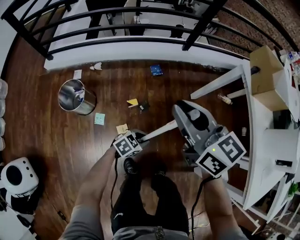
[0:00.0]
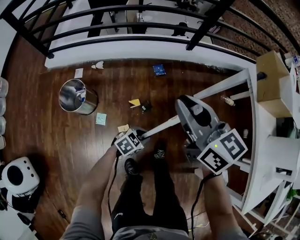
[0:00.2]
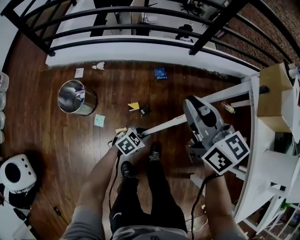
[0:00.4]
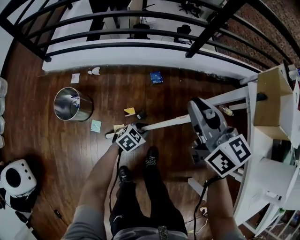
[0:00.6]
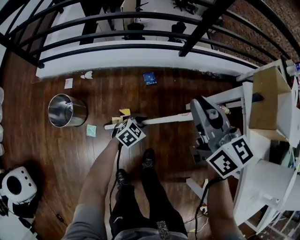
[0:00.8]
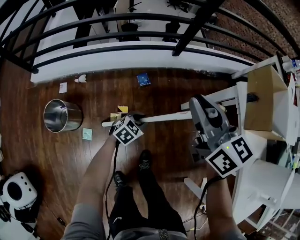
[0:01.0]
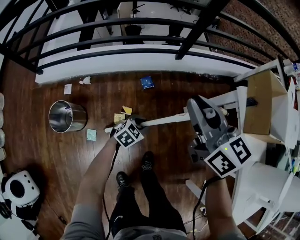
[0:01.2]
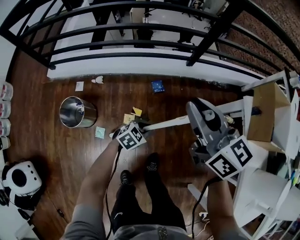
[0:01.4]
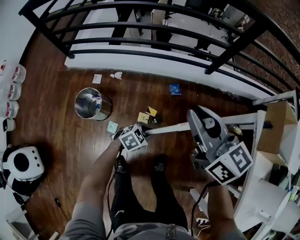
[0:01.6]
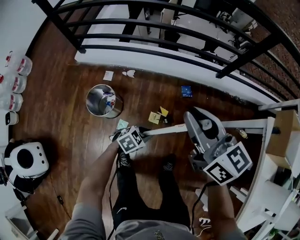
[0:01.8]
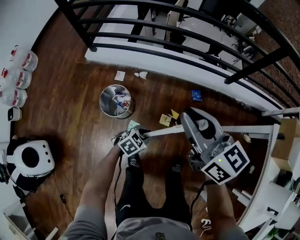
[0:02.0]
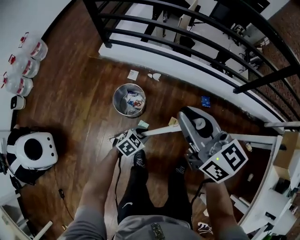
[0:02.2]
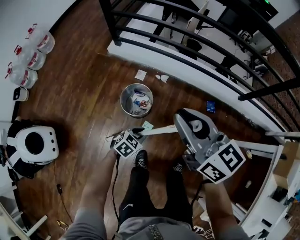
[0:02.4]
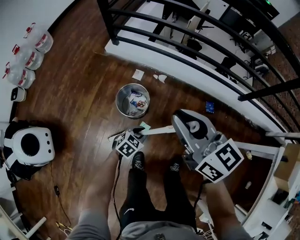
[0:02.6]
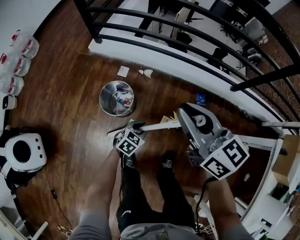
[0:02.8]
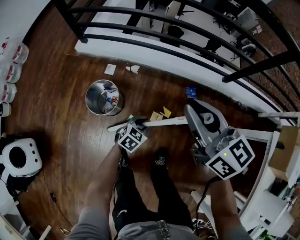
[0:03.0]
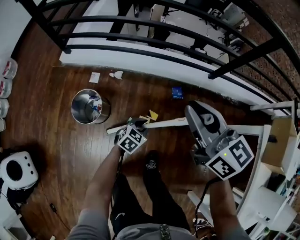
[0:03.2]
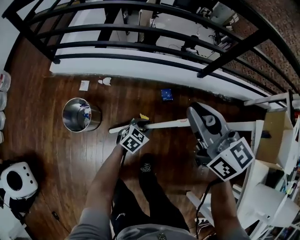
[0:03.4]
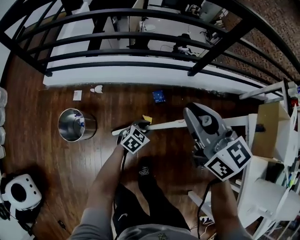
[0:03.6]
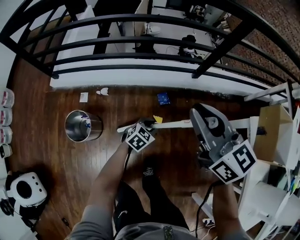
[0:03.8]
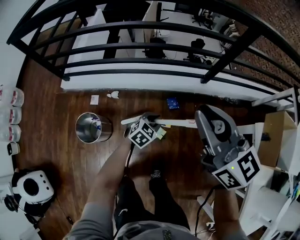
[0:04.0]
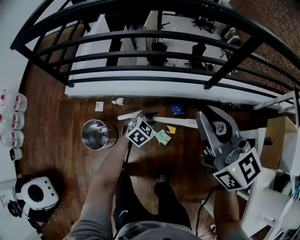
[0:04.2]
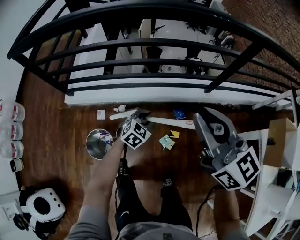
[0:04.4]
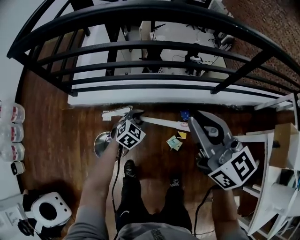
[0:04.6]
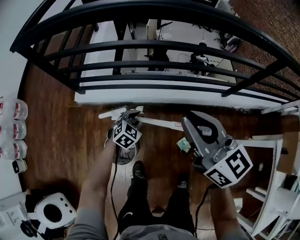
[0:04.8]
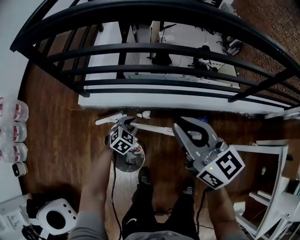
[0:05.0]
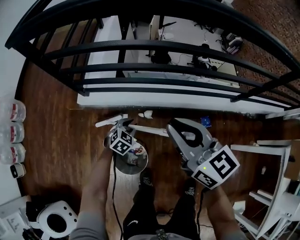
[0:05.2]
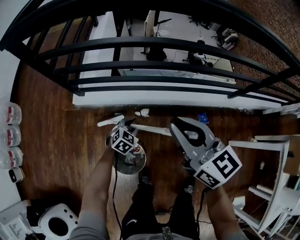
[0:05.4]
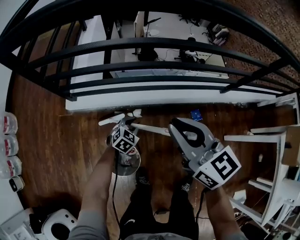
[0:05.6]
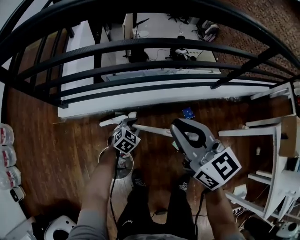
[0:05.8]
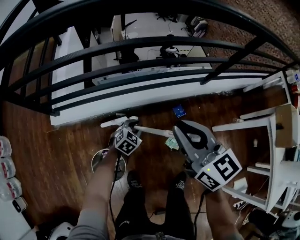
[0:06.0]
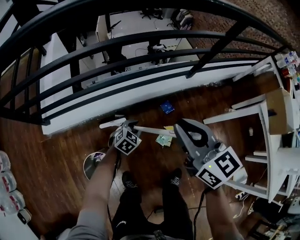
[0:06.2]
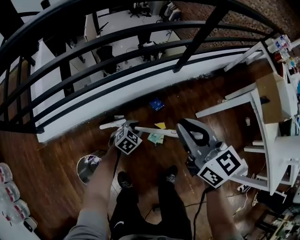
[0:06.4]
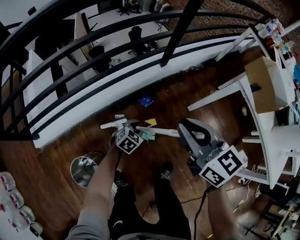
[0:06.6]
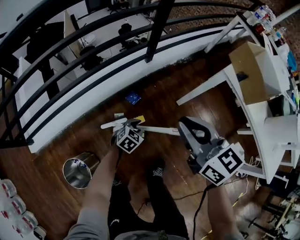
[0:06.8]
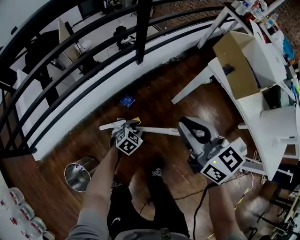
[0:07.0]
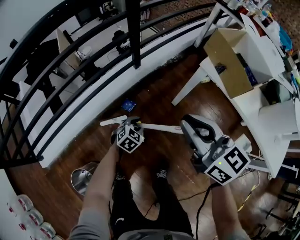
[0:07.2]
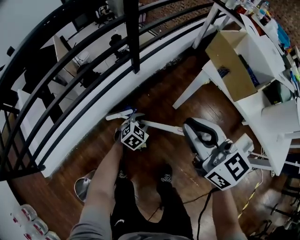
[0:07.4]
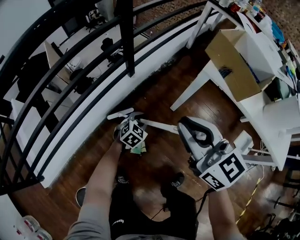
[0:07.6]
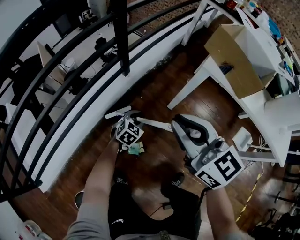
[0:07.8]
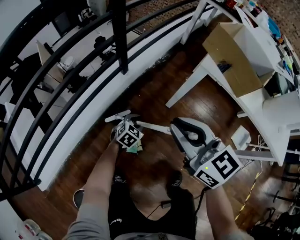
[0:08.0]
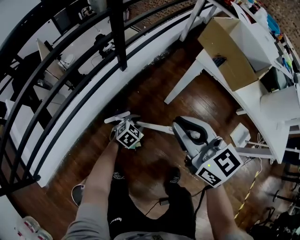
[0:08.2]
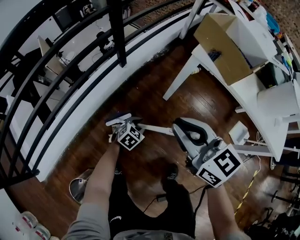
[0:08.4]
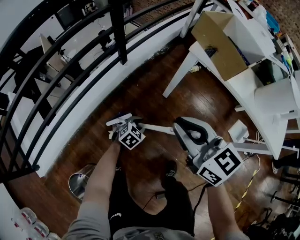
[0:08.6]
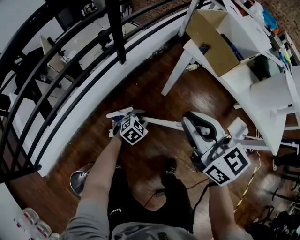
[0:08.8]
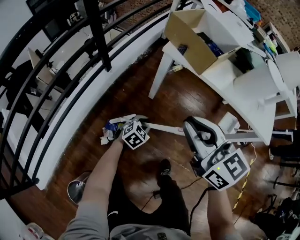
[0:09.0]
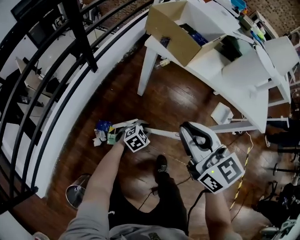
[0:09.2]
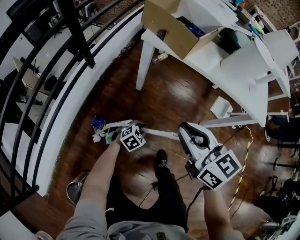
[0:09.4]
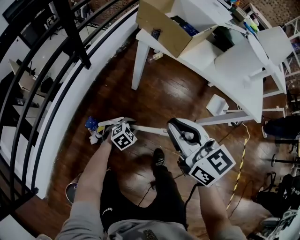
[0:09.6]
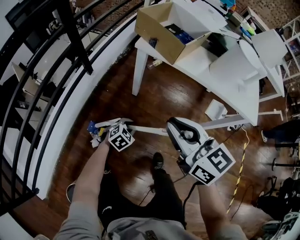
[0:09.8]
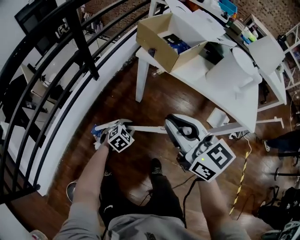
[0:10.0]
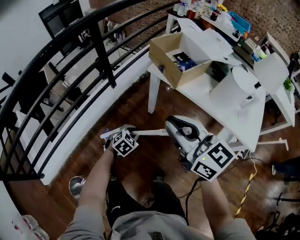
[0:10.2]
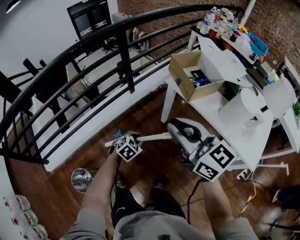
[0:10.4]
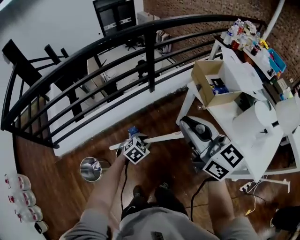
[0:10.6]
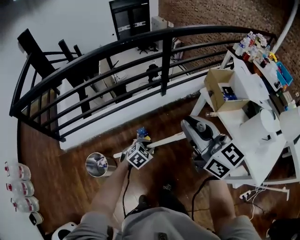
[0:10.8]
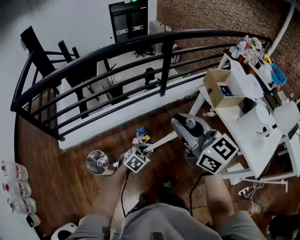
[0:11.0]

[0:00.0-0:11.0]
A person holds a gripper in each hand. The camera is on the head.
0.0 to 1.6 s: The left gripper travels forward and to the left by about 15 cm. Meanwhile the right gripper heads forward, covering roughly 10 cm.
1.6 to 3.2 s: The left gripper turns by approximately 20 degrees.
3.2 to 4.8 s: The right gripper goes roughly 20 cm to the left, forward and upward, while the left gripper goes approximately 35 cm to the left, forward and upward, and swivels approximately 20 degrees.
4.8 to 6.2 s: The right gripper changes place by some 15 cm, and turns by roughly 20 degrees, while the left gripper shifts by approximately 20 cm, and changes its angle by about 20 degrees.
6.2 to 7.8 s: The right gripper goes some 35 cm to the right, and changes its angle by approximately 30 degrees; the left gripper heads to the right and forward, covering approximately 40 cm, and rotates roughly 30 degrees.
7.8 to 9.4 s: The right gripper changes place by some 25 cm, and changes its angle by about 20 degrees. The left gripper changes place by about 30 cm, and swivels approximately 30 degrees.
9.4 to 11.0 s: Both grippers travel together upward, about 30 cm. The right gripper rotates roughly 50 degrees. Meanwhile the left gripper rotates some 50 degrees.

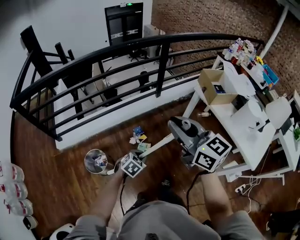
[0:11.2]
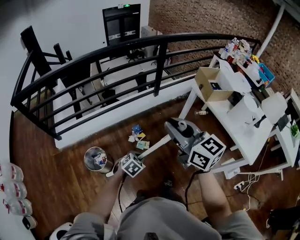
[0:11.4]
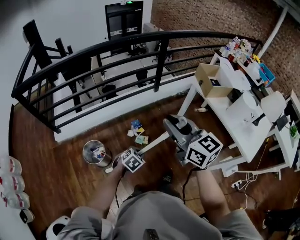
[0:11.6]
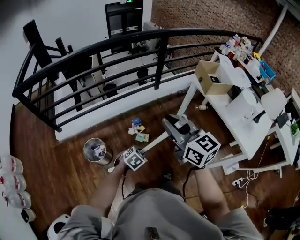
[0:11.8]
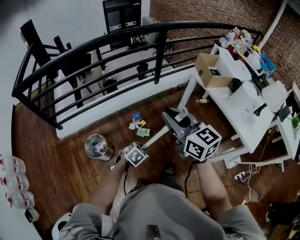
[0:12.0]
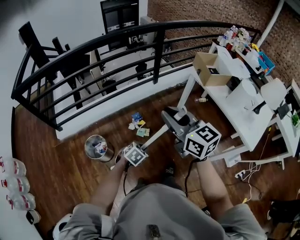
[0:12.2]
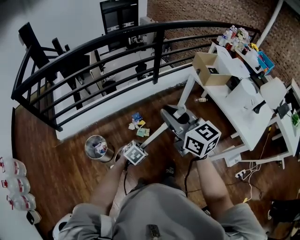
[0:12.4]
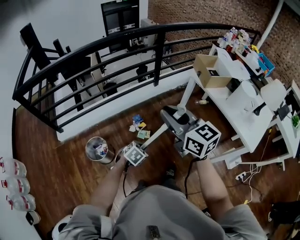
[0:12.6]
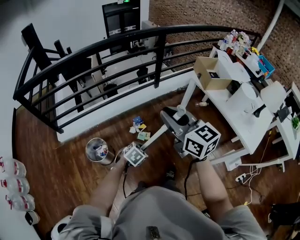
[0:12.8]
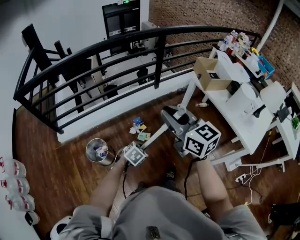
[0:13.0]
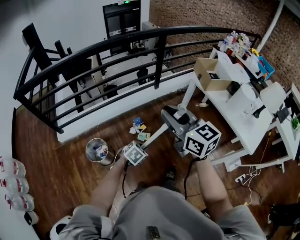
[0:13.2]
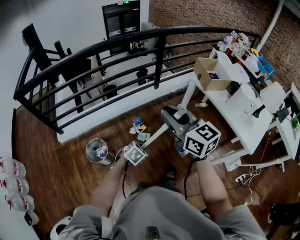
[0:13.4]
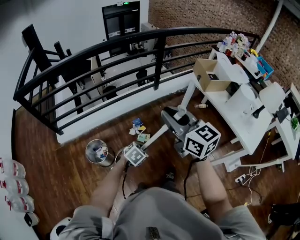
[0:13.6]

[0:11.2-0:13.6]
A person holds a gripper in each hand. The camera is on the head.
11.2 to 12.4 s: Both grippers move backward, about 5 cm.
12.4 to 13.6 s: The grippers make only small movements.

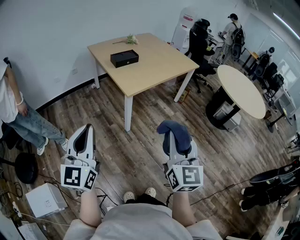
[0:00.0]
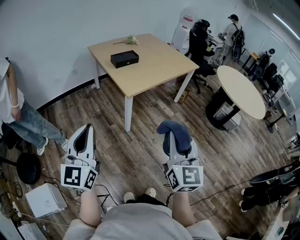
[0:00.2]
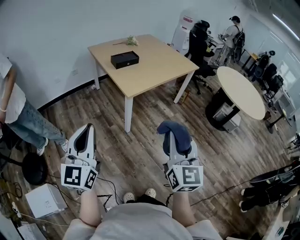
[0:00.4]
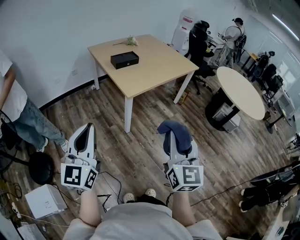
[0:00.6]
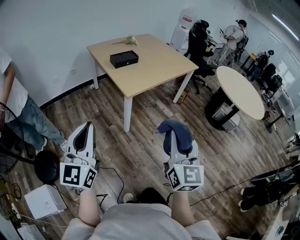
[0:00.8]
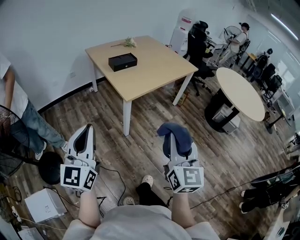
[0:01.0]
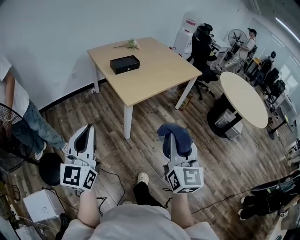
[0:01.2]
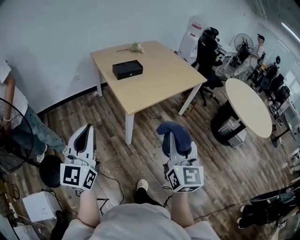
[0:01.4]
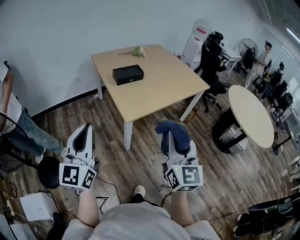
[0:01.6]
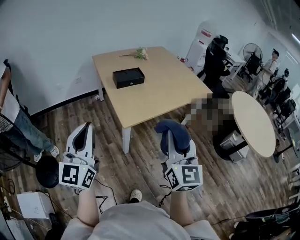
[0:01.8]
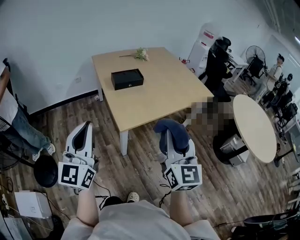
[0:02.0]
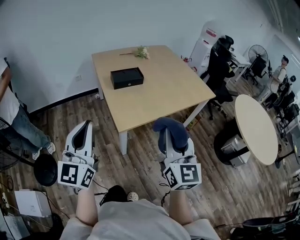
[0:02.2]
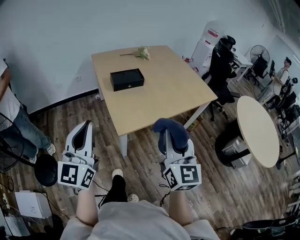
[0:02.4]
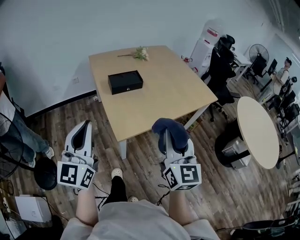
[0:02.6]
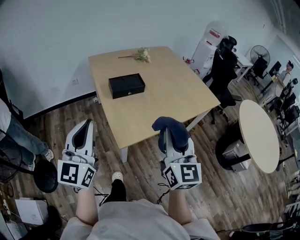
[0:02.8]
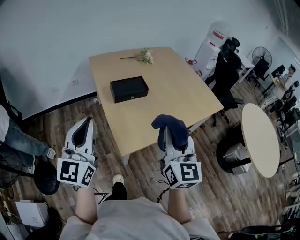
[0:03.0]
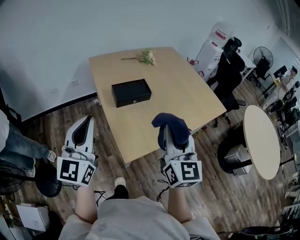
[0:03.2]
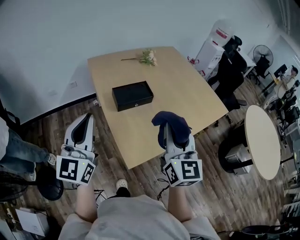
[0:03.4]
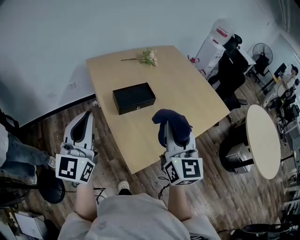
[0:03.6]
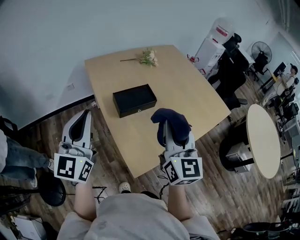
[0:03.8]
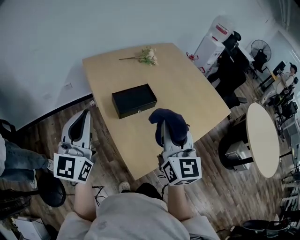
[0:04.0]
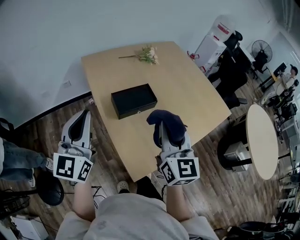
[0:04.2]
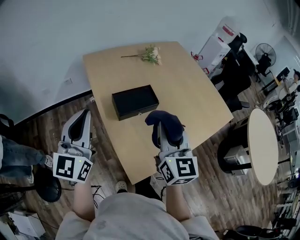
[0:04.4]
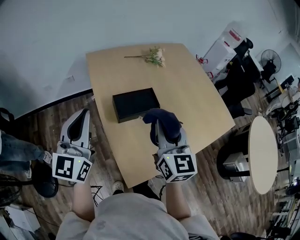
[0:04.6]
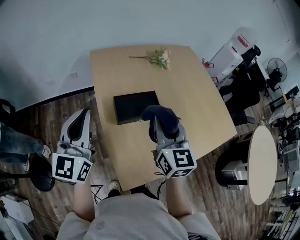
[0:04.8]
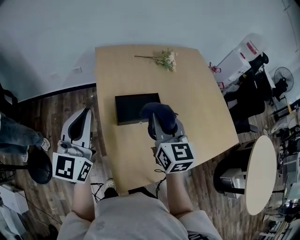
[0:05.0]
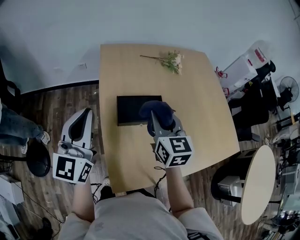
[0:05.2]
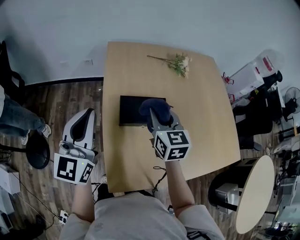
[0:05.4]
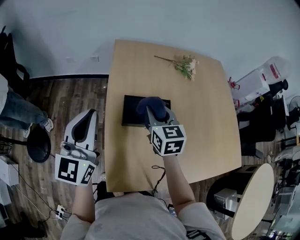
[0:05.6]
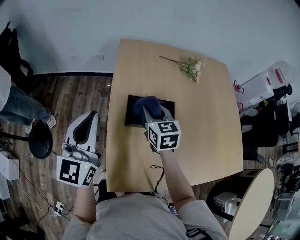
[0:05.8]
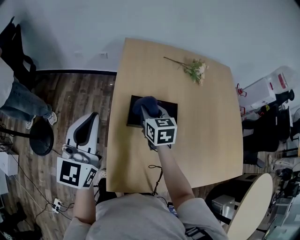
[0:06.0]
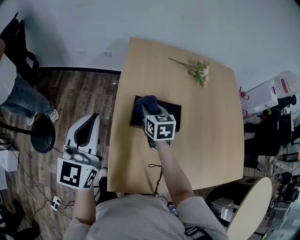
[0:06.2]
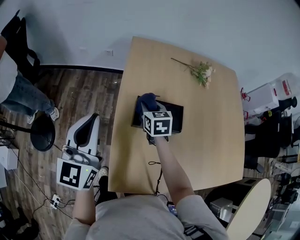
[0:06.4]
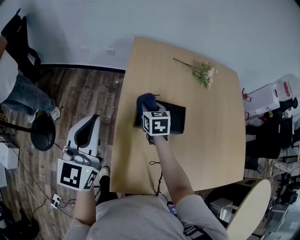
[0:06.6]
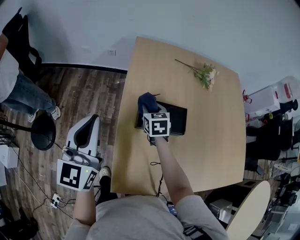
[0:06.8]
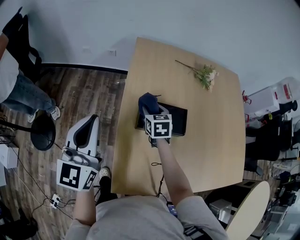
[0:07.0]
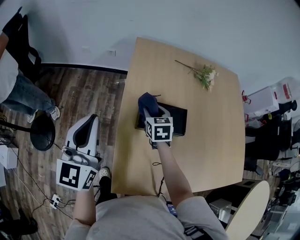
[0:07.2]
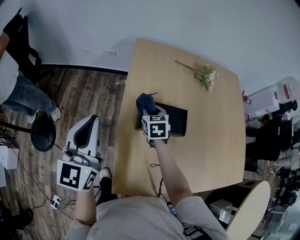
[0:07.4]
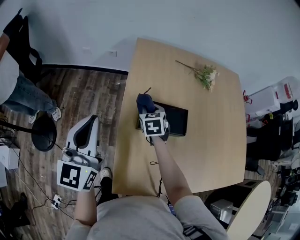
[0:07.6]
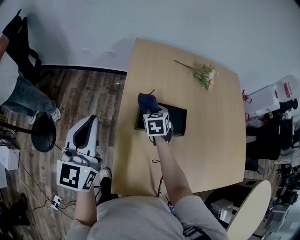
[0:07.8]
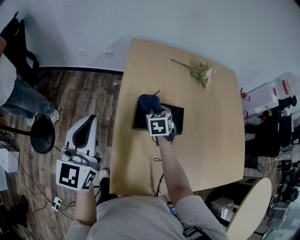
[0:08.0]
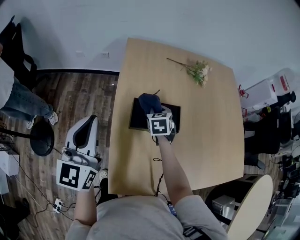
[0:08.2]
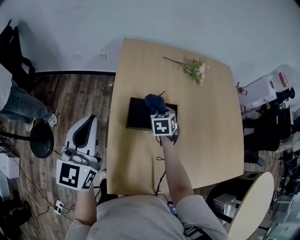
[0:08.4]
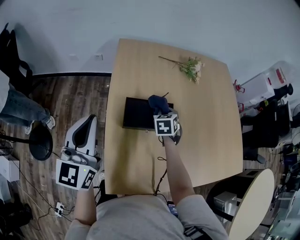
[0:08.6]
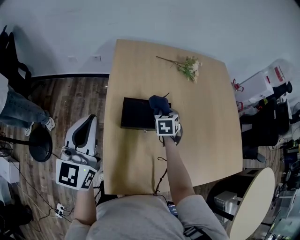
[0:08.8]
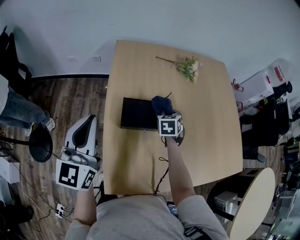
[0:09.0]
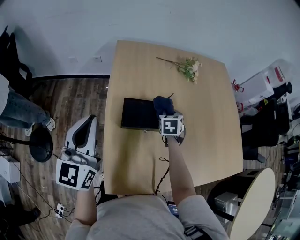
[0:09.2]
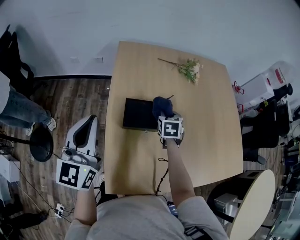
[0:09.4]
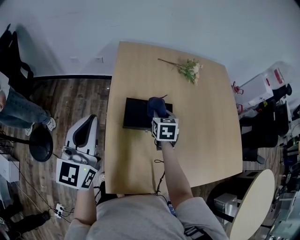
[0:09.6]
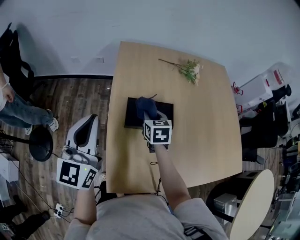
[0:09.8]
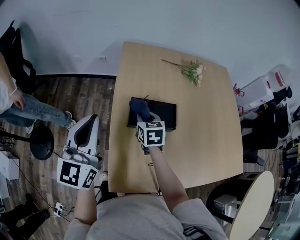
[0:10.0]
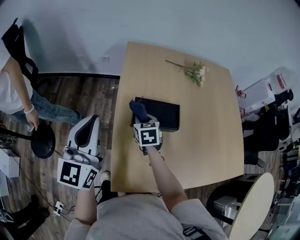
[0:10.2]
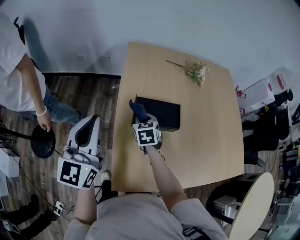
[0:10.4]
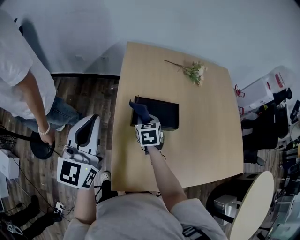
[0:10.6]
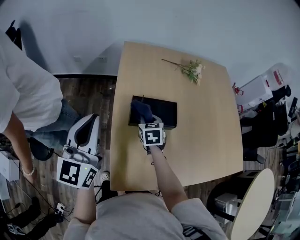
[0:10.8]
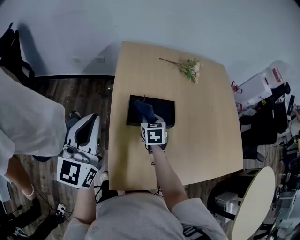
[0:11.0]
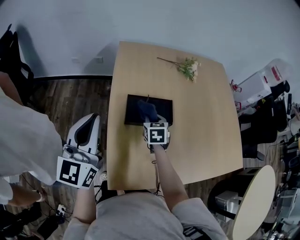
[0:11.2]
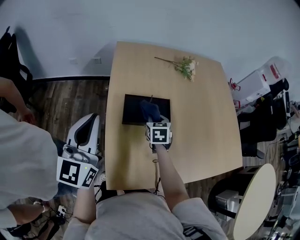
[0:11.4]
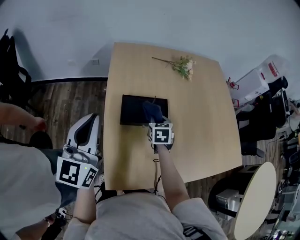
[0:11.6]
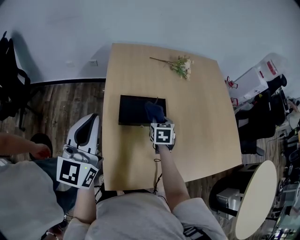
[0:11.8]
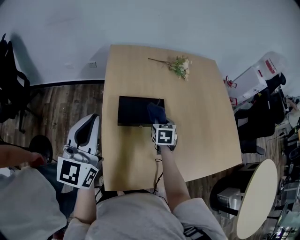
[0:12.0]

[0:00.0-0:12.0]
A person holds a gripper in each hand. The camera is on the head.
0.0 to 1.6 s: The grippers both shift forward by about 20 cm.
1.6 to 3.0 s: The grippers both shift forward by some 30 cm.
3.0 to 4.4 s: The right gripper goes about 25 cm forward and to the left. Meanwhile the left gripper heads forward, covering approximately 20 cm.
4.4 to 6.0 s: The right gripper moves about 30 cm, and turns by roughly 50 degrees; the left gripper moves some 5 cm, and swivels approximately 30 degrees.
6.0 to 7.6 s: The right gripper is displaced downward by roughly 5 cm, and opens, then closes once more; the left gripper travels to the left by some 5 cm.
7.6 to 9.0 s: The left gripper heads to the right, covering roughly 10 cm. Meanwhile the right gripper heads to the right, covering some 20 cm.
9.0 to 10.4 s: The right gripper goes roughly 20 cm to the left. Meanwhile the left gripper goes some 5 cm to the left.
10.4 to 12.0 s: The left gripper shifts about 5 cm to the right; the right gripper goes some 20 cm to the right.
